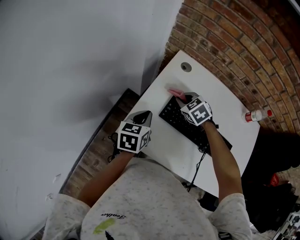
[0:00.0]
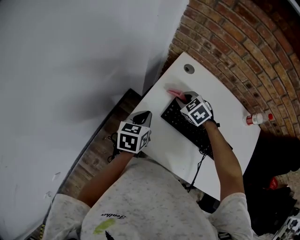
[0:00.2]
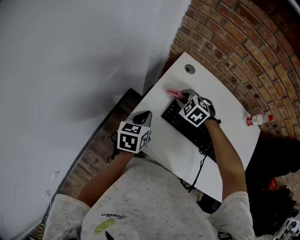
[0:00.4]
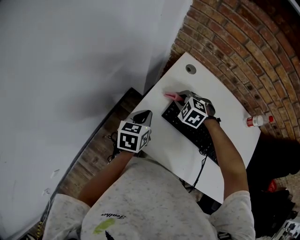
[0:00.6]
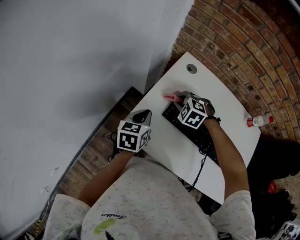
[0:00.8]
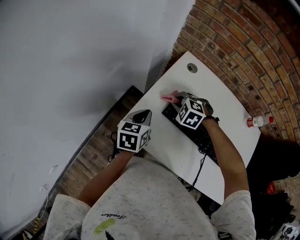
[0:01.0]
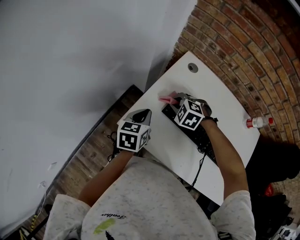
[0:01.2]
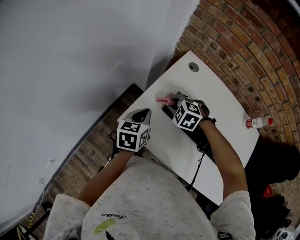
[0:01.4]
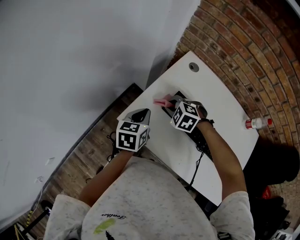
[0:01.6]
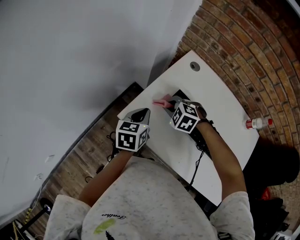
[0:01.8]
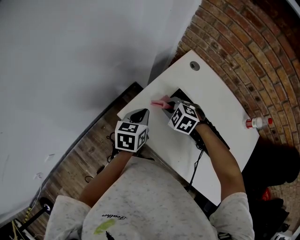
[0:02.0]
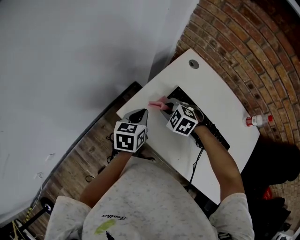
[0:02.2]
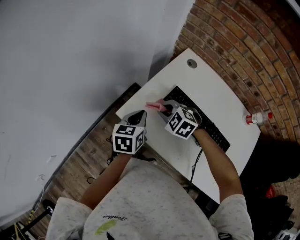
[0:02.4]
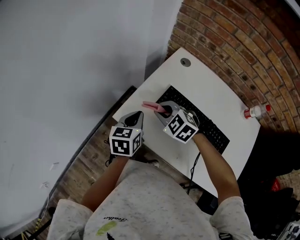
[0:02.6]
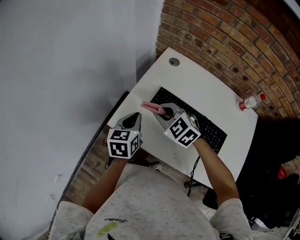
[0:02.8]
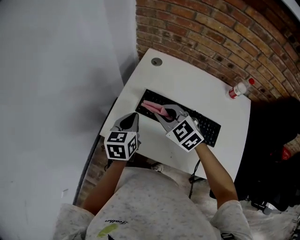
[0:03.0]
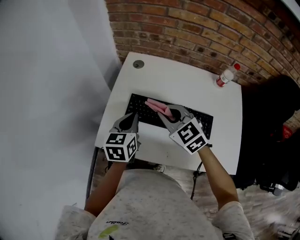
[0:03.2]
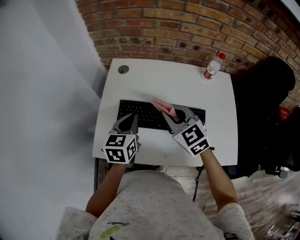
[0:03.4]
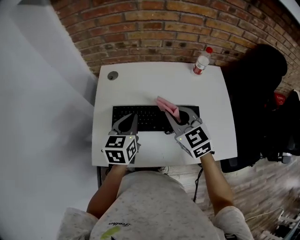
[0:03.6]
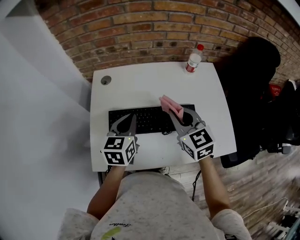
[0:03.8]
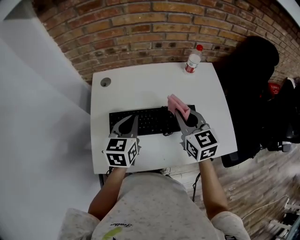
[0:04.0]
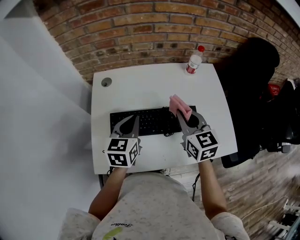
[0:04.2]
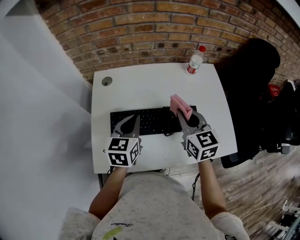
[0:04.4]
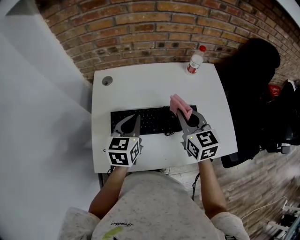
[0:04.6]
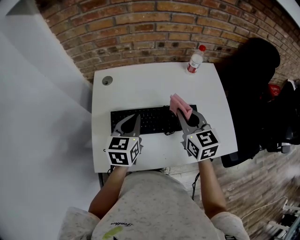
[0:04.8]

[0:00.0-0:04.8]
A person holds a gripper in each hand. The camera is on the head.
0.0 to 1.6 s: The right gripper heads backward and to the left, covering approximately 10 cm, and turns by about 40 degrees.
1.6 to 3.2 s: The left gripper heads to the right and upward, covering roughly 15 cm, and rotates approximately 20 degrees. Meanwhile the right gripper is displaced upward, to the right and backward by roughly 20 cm, and tilts its fingers roughly 30 degrees upward.
3.2 to 4.8 s: The right gripper shifts by about 15 cm, and rotates about 50 degrees; the left gripper shifts by approximately 10 cm, and changes its angle by roughly 20 degrees.

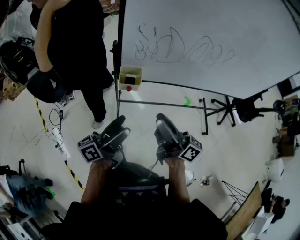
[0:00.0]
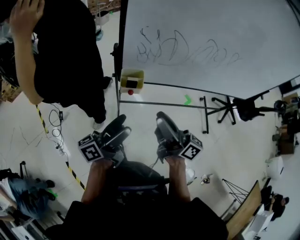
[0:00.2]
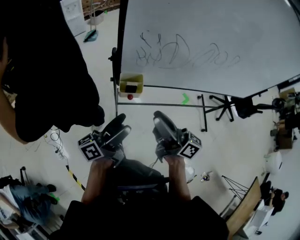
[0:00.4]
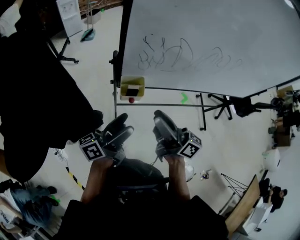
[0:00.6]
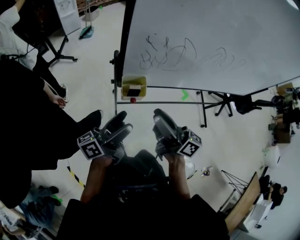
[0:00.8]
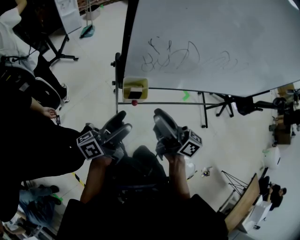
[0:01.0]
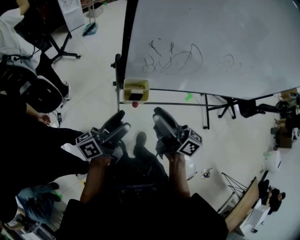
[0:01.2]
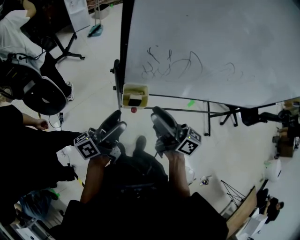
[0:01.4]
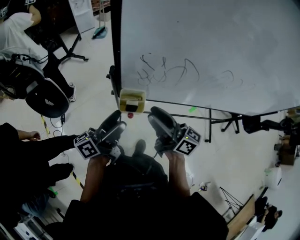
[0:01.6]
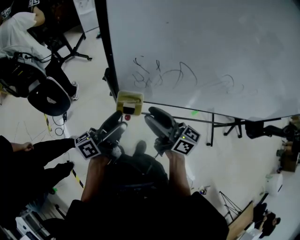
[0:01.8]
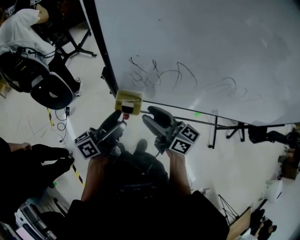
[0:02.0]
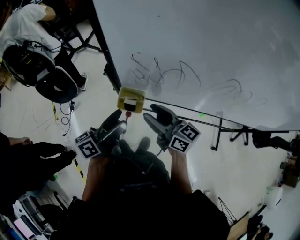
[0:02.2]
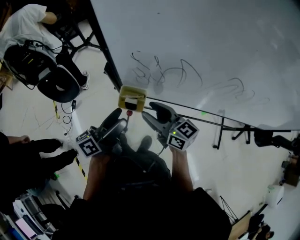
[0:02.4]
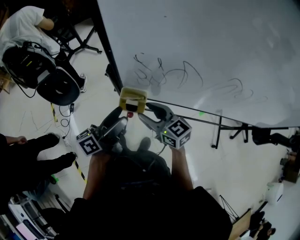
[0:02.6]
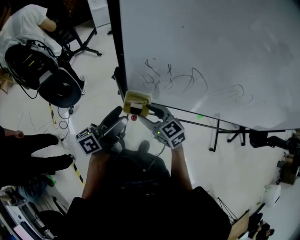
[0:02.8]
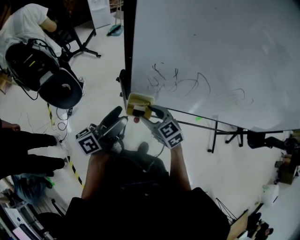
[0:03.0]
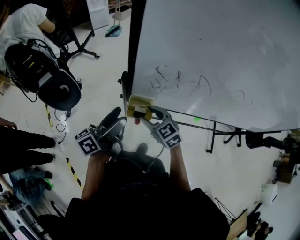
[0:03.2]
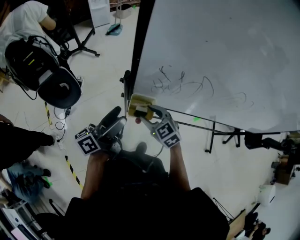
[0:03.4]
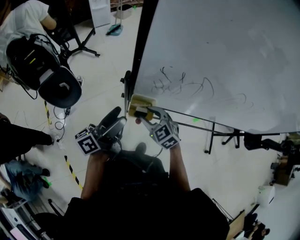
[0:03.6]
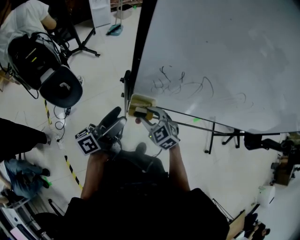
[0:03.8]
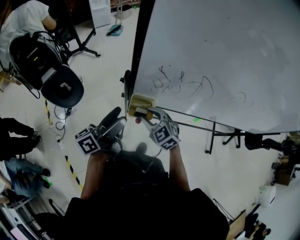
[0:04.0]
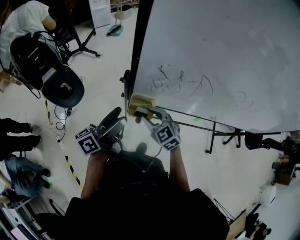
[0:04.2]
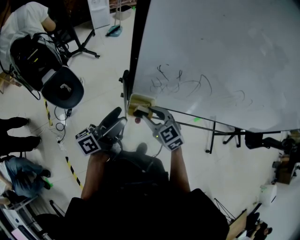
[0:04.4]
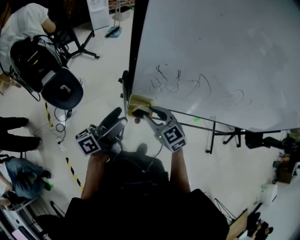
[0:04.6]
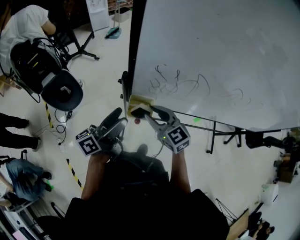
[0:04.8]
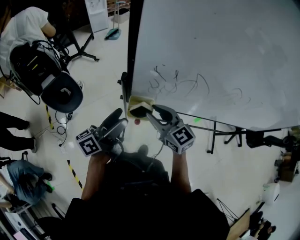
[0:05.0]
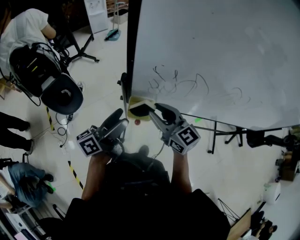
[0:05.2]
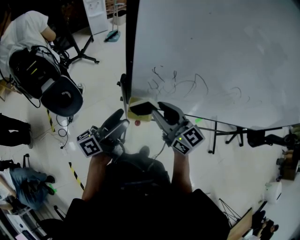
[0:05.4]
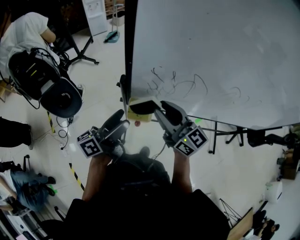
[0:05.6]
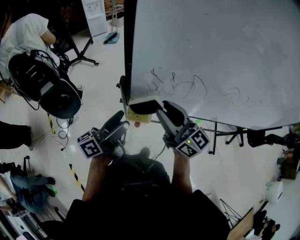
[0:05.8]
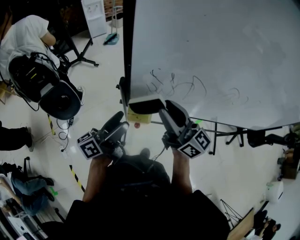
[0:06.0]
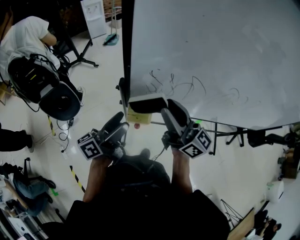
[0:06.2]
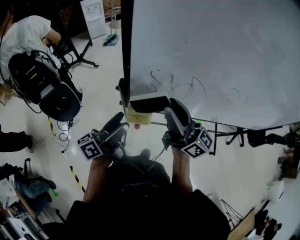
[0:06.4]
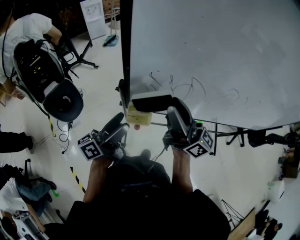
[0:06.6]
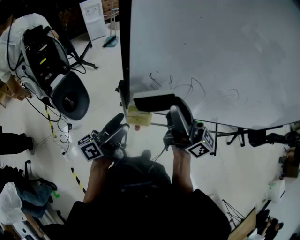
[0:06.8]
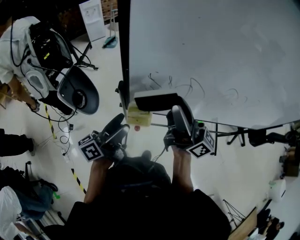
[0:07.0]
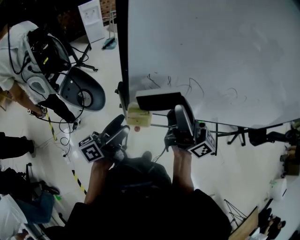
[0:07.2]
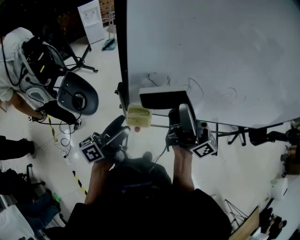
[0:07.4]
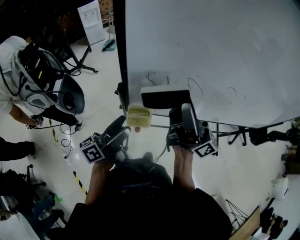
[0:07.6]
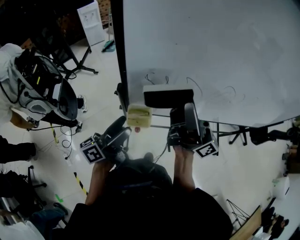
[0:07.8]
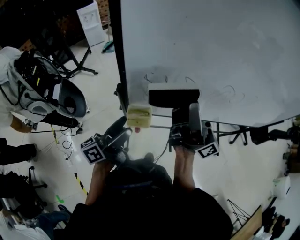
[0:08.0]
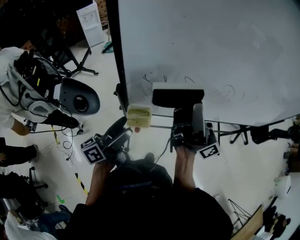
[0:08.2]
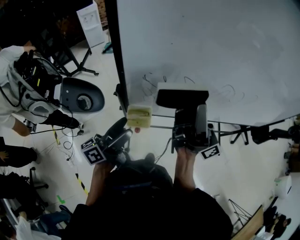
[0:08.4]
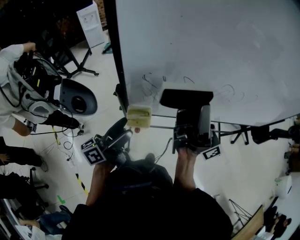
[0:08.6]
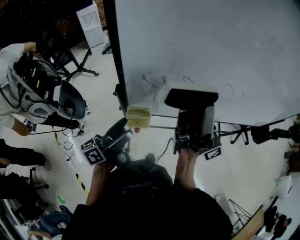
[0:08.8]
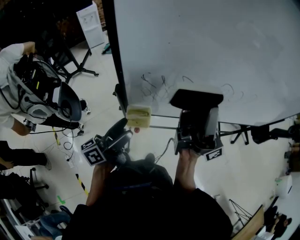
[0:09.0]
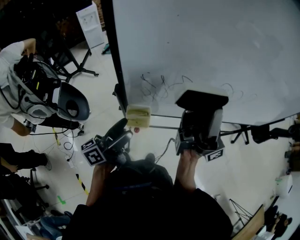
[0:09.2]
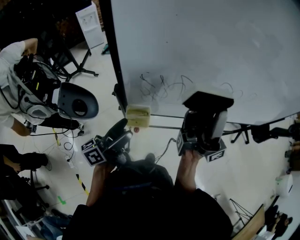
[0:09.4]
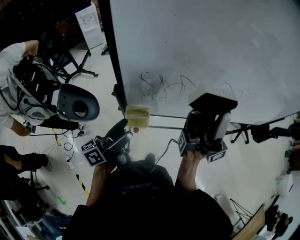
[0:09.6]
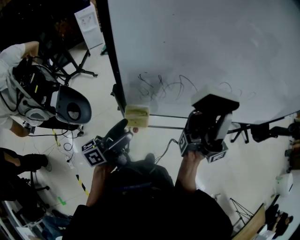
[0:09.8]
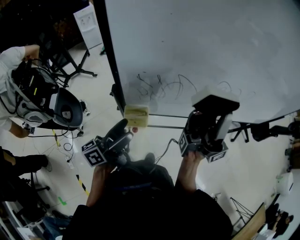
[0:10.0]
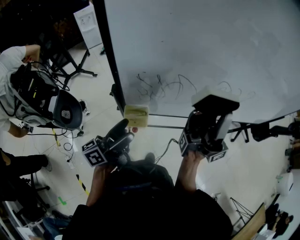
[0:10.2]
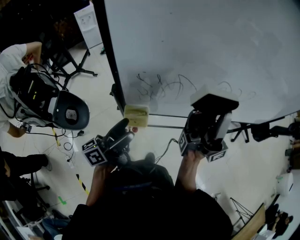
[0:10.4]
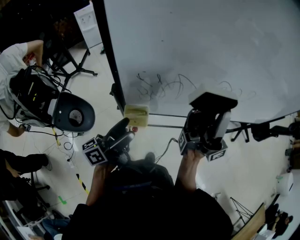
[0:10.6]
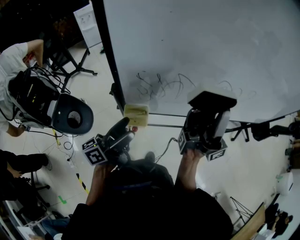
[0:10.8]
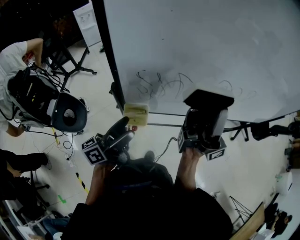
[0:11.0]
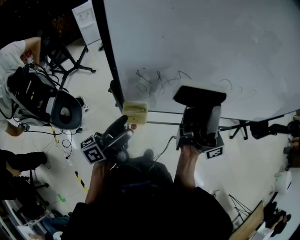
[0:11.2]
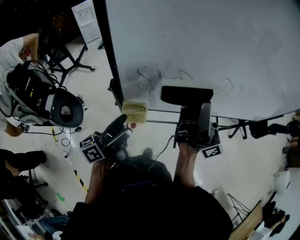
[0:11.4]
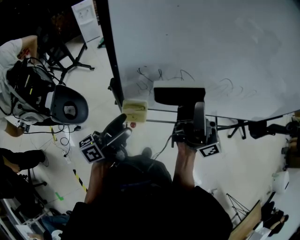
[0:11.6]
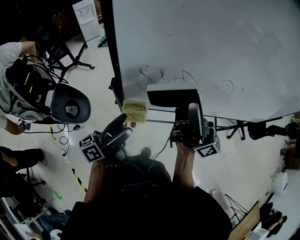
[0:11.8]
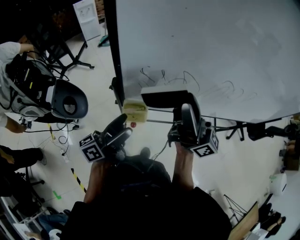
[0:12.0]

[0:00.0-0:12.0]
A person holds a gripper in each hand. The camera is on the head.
0.0 to 1.6 s: The grippers both shift forward by about 20 cm.
1.6 to 3.0 s: The right gripper heads downward and forward, covering approximately 15 cm, and tips its fingers downward by roughly 40 degrees.
3.0 to 4.4 s: The grippers make only small movements.
4.4 to 6.0 s: The right gripper heads upward, covering about 20 cm, and points its fingers some 40 degrees further upward.
6.0 to 7.6 s: The right gripper moves upward and to the right, some 10 cm, and swivels some 30 degrees.
7.6 to 9.0 s: The right gripper travels to the right by about 5 cm, and changes its angle by about 20 degrees.
9.0 to 10.4 s: The right gripper travels to the right by roughly 5 cm.
10.4 to 12.0 s: The right gripper heads to the left, covering about 10 cm, and rotates approximately 40 degrees.

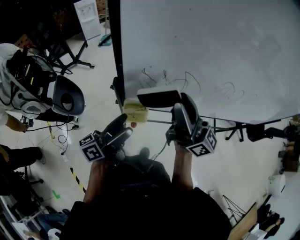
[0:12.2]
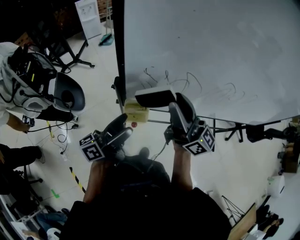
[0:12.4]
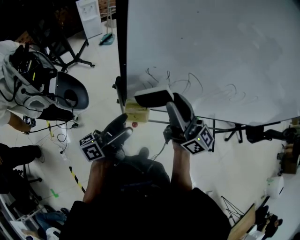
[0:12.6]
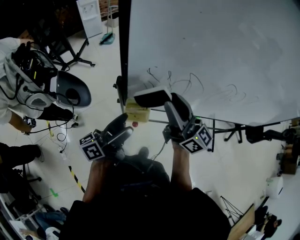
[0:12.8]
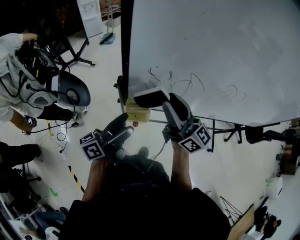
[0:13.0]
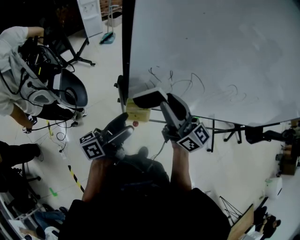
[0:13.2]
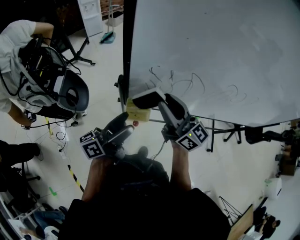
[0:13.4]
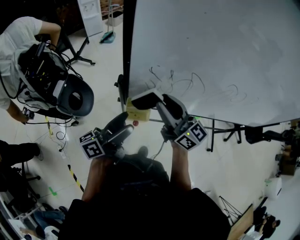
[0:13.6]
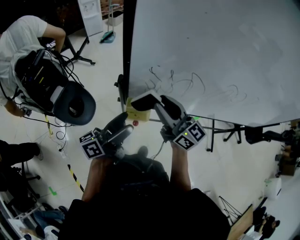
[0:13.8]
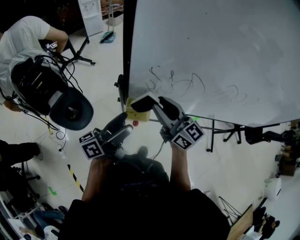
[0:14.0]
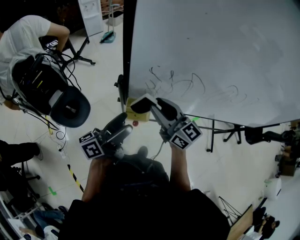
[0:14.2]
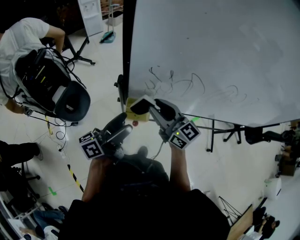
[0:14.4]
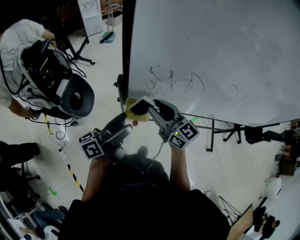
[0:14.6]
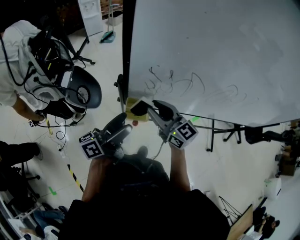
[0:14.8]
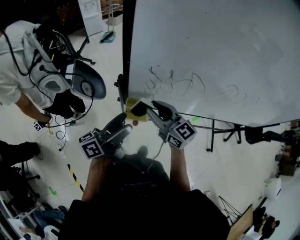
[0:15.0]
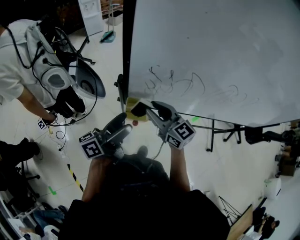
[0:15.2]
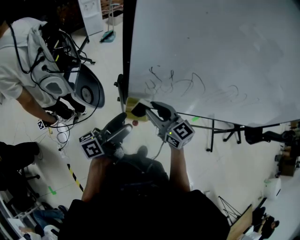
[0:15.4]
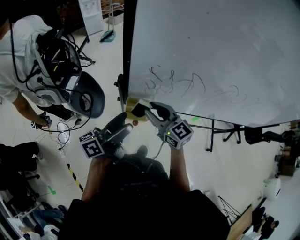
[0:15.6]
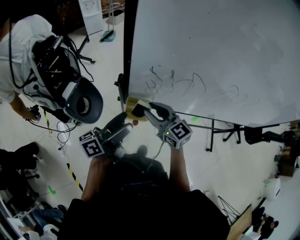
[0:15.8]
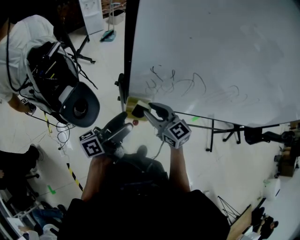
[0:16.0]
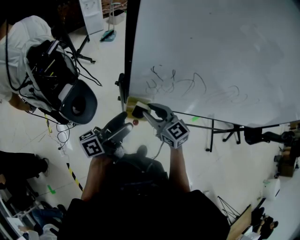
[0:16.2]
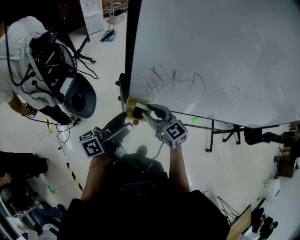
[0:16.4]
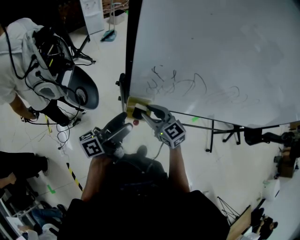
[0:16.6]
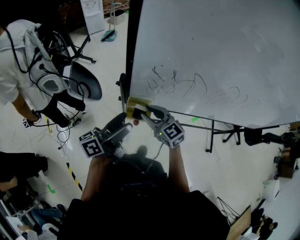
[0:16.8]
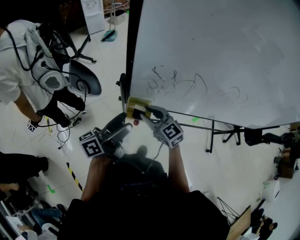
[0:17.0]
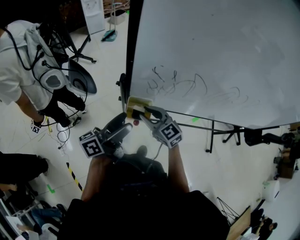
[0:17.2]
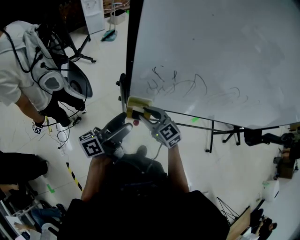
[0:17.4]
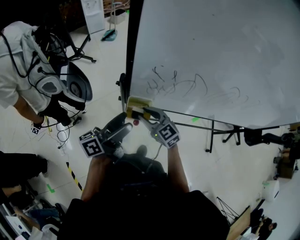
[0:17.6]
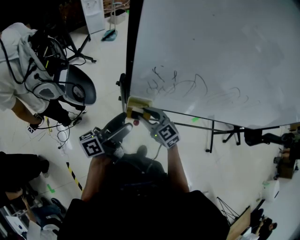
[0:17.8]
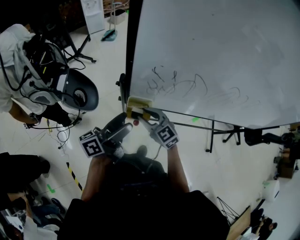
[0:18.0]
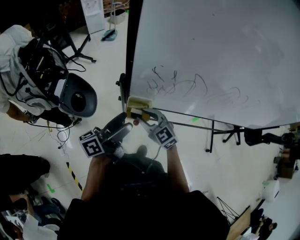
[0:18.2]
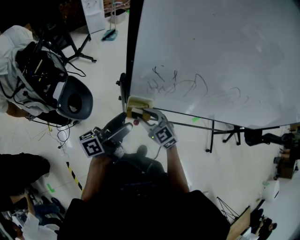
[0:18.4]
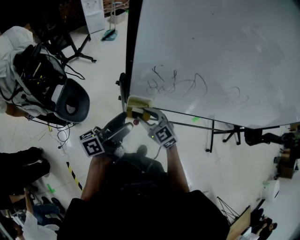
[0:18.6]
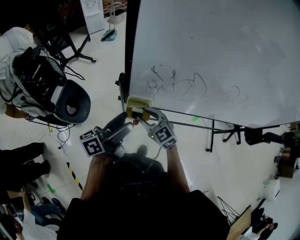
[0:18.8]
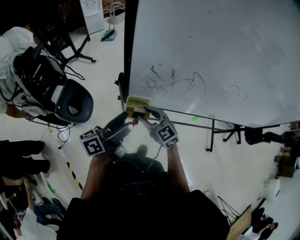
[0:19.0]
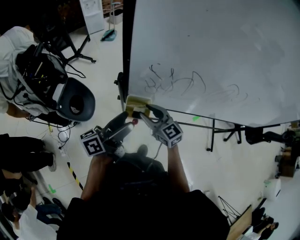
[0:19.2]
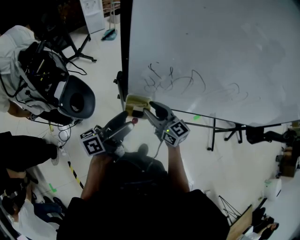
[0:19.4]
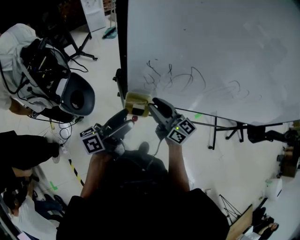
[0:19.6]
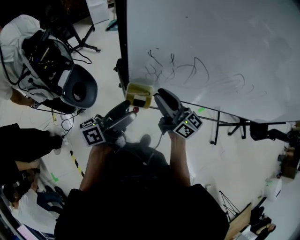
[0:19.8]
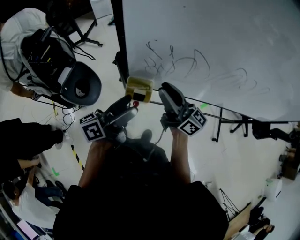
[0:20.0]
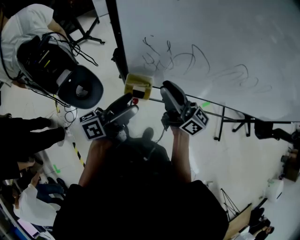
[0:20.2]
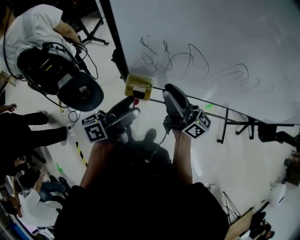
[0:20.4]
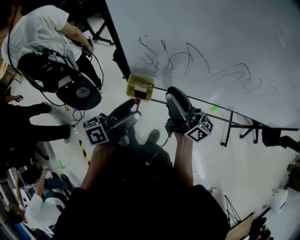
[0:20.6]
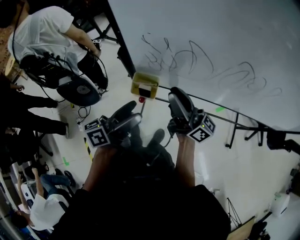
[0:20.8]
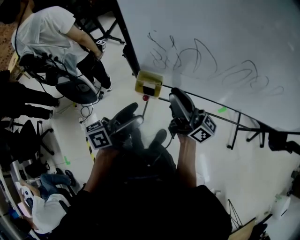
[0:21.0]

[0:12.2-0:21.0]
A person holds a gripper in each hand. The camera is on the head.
12.2 to 13.6 s: The right gripper shifts about 10 cm downward and to the left, and rotates some 20 degrees.
13.6 to 15.2 s: The right gripper moves downward, approximately 10 cm, and turns by roughly 20 degrees.
15.2 to 16.6 s: The right gripper shifts roughly 5 cm downward.
16.6 to 18.0 s: The grippers move only a little.
18.0 to 19.6 s: The right gripper shifts some 10 cm upward and to the right, and swivels about 40 degrees.
19.6 to 21.0 s: The right gripper moves upward, to the right and backward, roughly 10 cm, and turns by roughly 30 degrees. The left gripper moves backward, roughly 5 cm.
